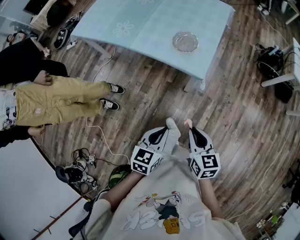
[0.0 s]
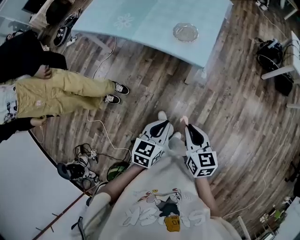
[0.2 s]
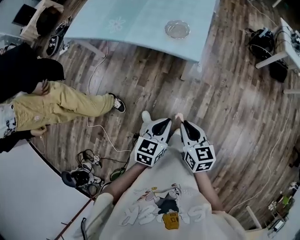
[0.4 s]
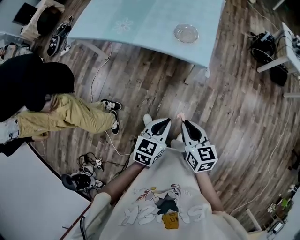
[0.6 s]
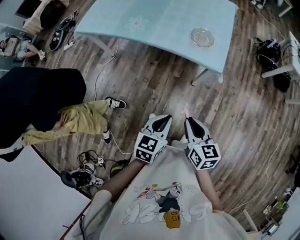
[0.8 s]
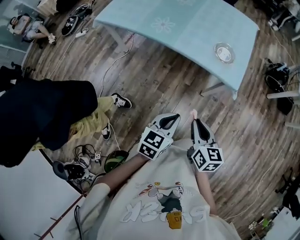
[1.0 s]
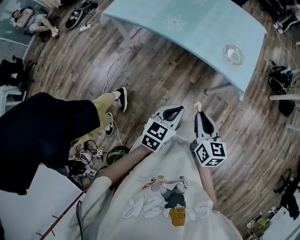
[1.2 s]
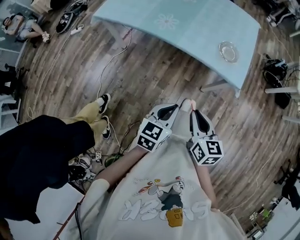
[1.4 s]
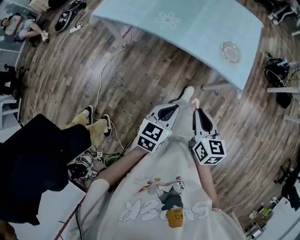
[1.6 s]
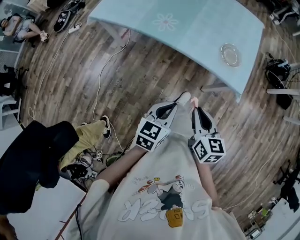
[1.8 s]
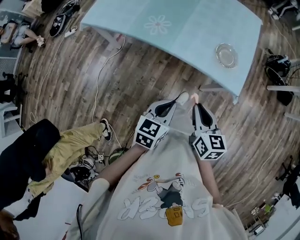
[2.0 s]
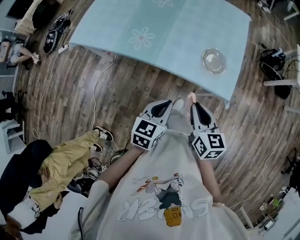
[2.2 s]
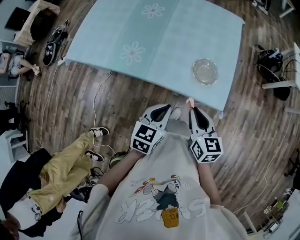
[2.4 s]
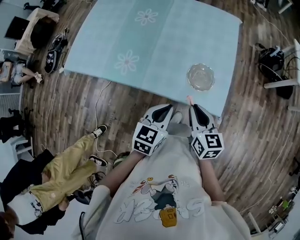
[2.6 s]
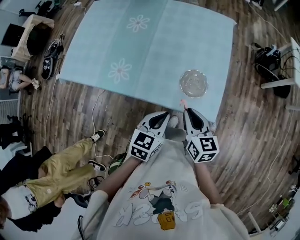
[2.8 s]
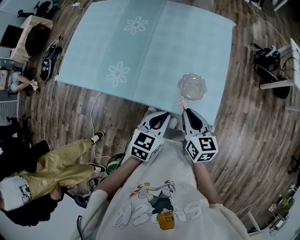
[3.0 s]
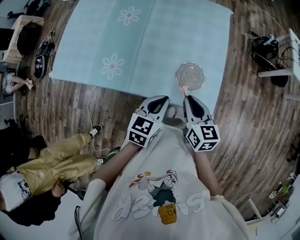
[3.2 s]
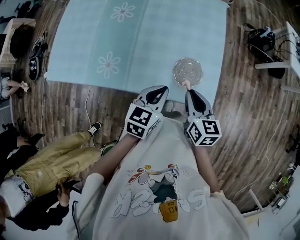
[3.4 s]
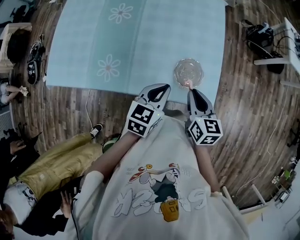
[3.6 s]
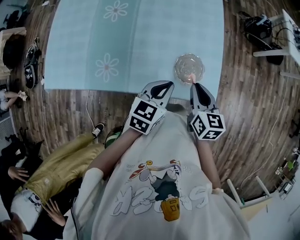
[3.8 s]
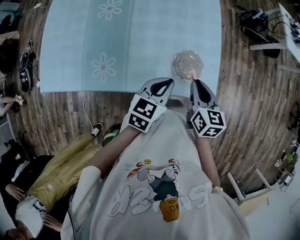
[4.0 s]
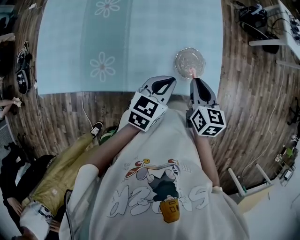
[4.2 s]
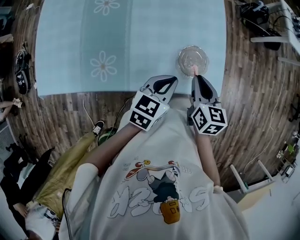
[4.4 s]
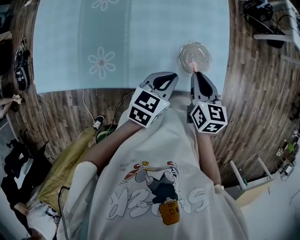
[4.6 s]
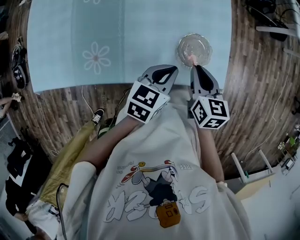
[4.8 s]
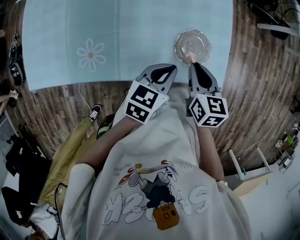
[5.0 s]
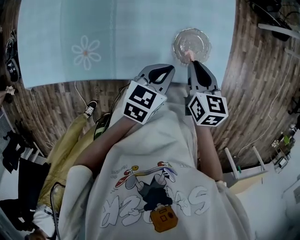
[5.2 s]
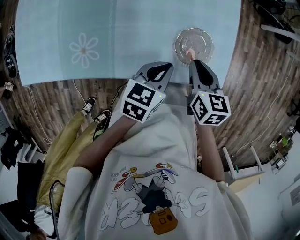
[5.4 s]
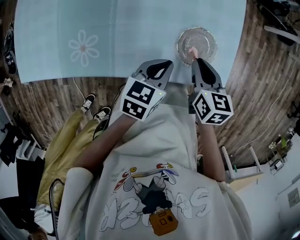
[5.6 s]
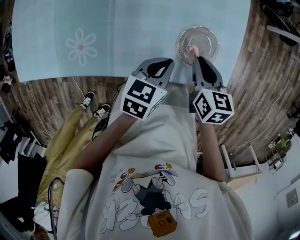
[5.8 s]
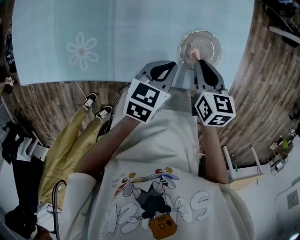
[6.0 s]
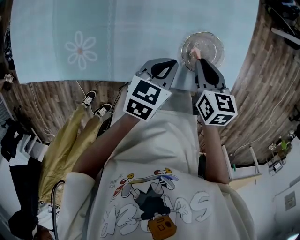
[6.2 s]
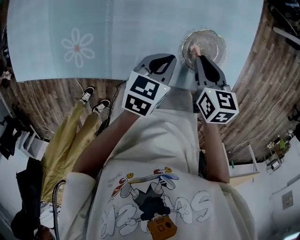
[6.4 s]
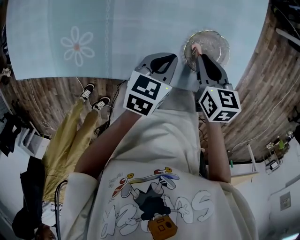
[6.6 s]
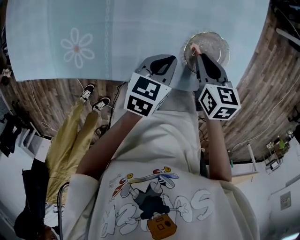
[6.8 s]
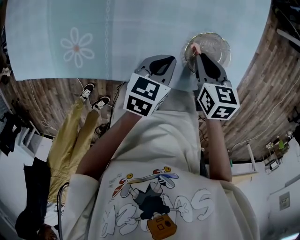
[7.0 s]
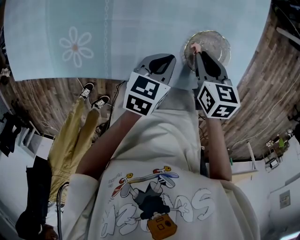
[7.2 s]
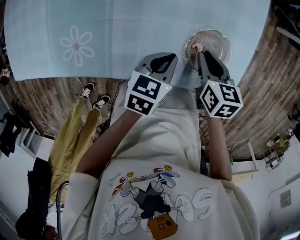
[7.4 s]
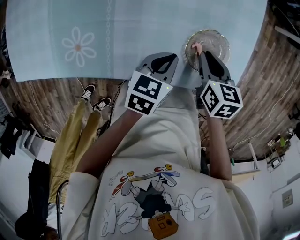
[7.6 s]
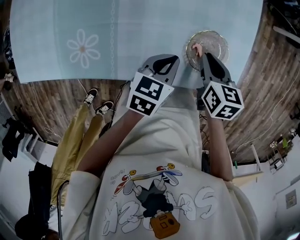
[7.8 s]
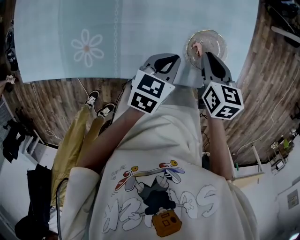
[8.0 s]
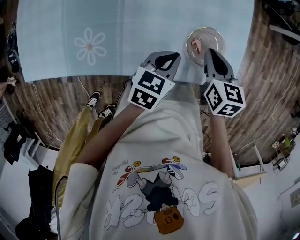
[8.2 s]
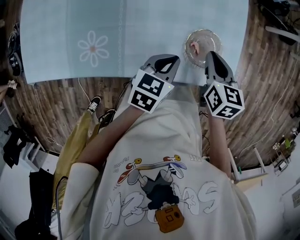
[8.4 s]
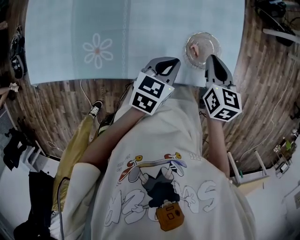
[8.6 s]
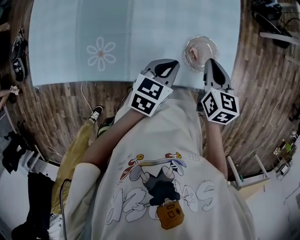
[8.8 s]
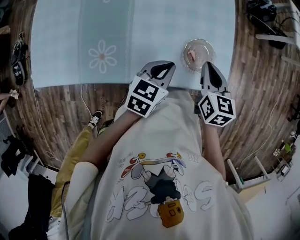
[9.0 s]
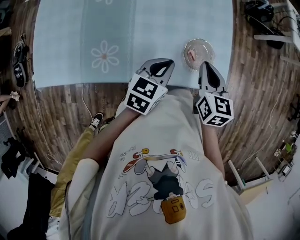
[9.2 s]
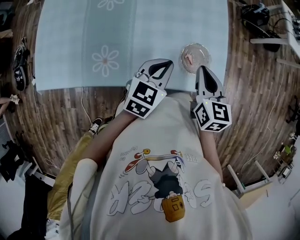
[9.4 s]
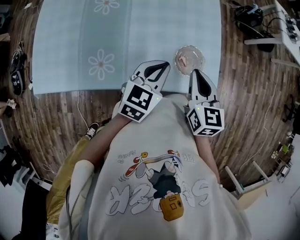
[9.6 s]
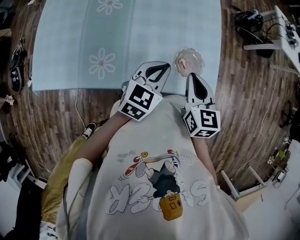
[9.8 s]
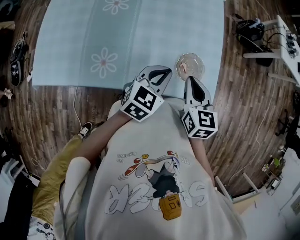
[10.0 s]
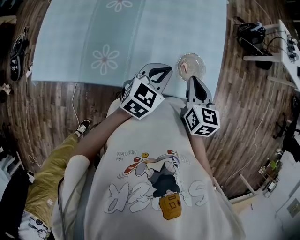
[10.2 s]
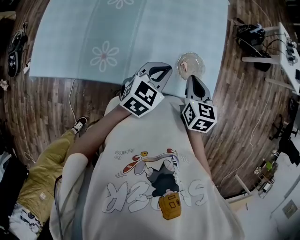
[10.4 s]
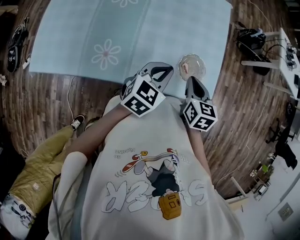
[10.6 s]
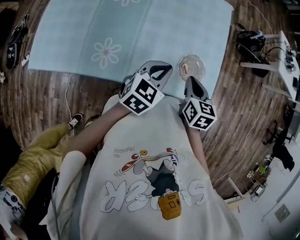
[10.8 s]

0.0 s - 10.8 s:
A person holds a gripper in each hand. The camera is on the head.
0.0 s - 1.6 s: Both grippers travel together to the left, roughly 35 cm.
1.6 s - 3.0 s: The two grippers go about 35 cm forward and to the right.
3.0 s - 4.6 s: Both grippers move forward, some 10 cm. The right gripper changes its angle by about 20 degrees; the left gripper rotates some 20 degrees.
4.6 s - 6.2 s: Both grippers travel together downward, roughly 15 cm.
6.2 s - 7.8 s: There are only small adjustments of the grippers.
7.8 s - 9.2 s: The grippers both shift upward by some 15 cm. The right gripper swivels approximately 20 degrees.

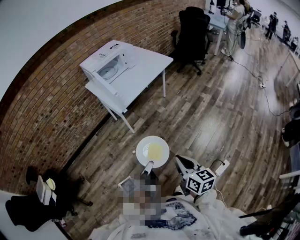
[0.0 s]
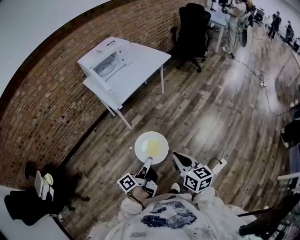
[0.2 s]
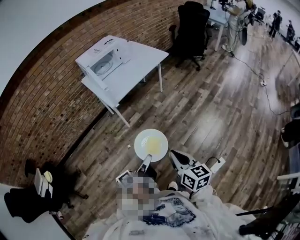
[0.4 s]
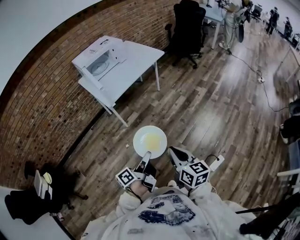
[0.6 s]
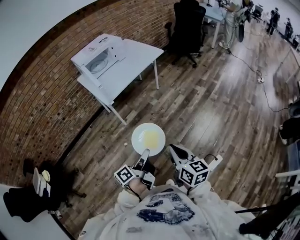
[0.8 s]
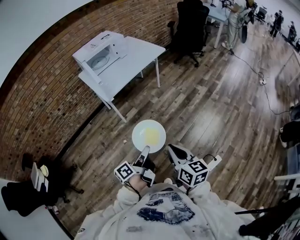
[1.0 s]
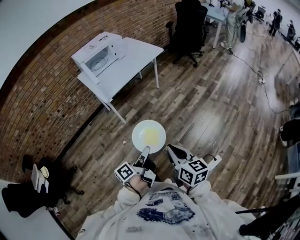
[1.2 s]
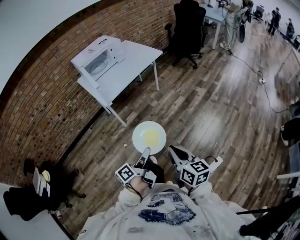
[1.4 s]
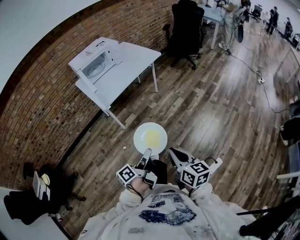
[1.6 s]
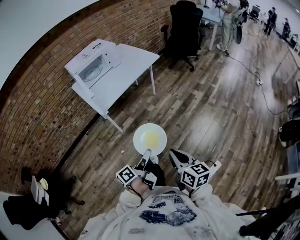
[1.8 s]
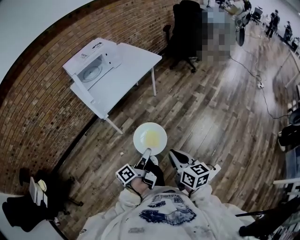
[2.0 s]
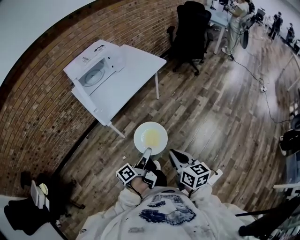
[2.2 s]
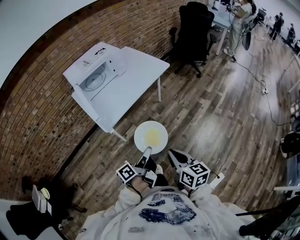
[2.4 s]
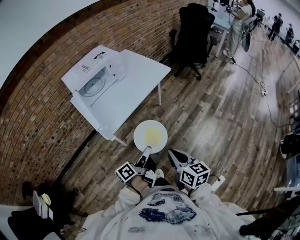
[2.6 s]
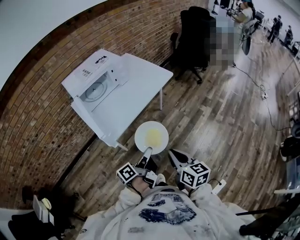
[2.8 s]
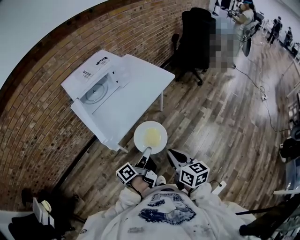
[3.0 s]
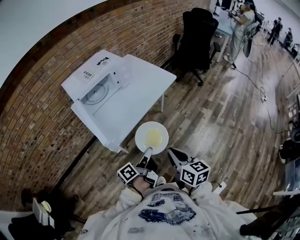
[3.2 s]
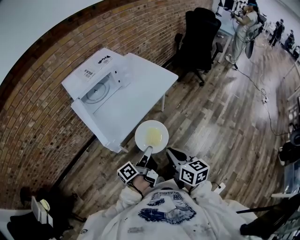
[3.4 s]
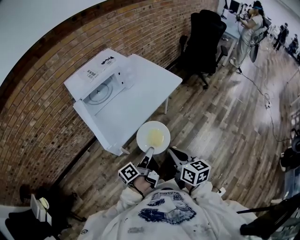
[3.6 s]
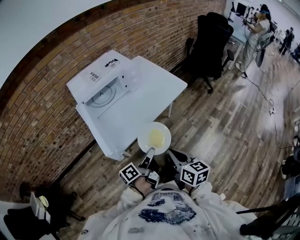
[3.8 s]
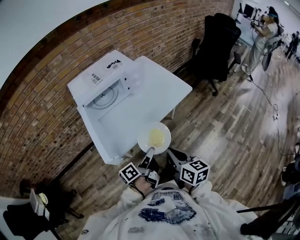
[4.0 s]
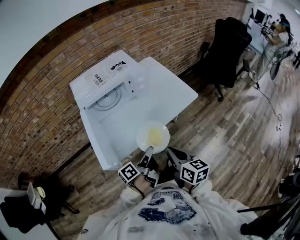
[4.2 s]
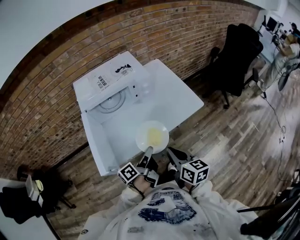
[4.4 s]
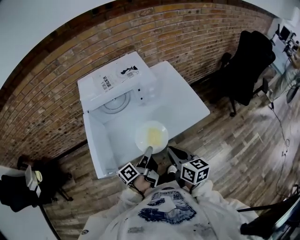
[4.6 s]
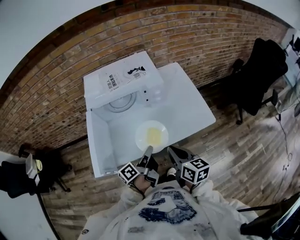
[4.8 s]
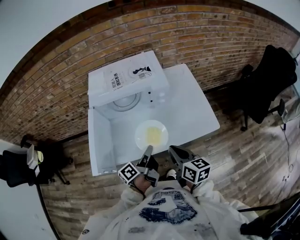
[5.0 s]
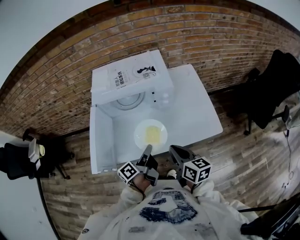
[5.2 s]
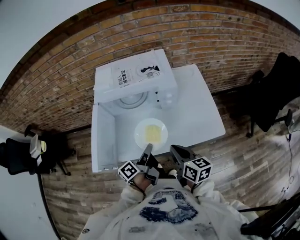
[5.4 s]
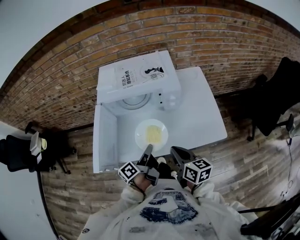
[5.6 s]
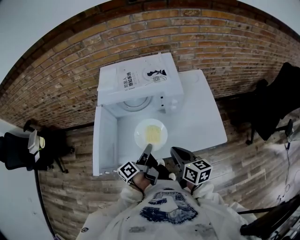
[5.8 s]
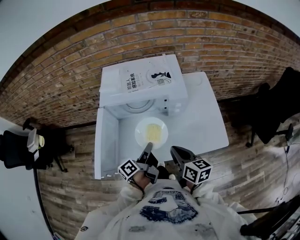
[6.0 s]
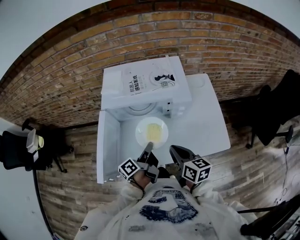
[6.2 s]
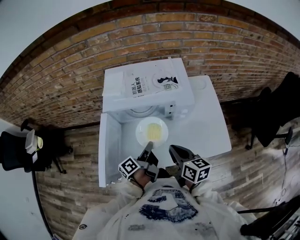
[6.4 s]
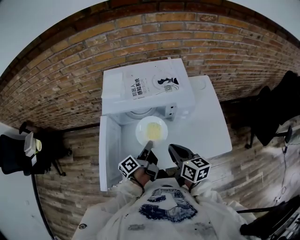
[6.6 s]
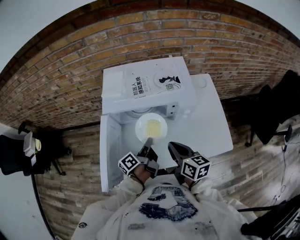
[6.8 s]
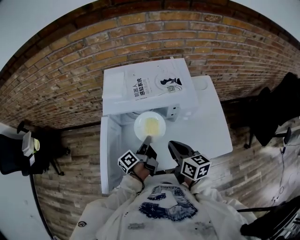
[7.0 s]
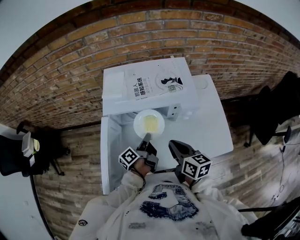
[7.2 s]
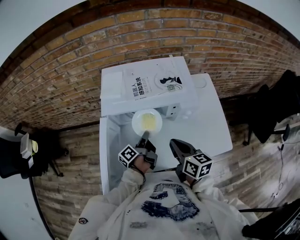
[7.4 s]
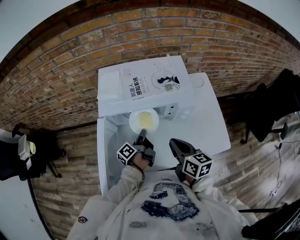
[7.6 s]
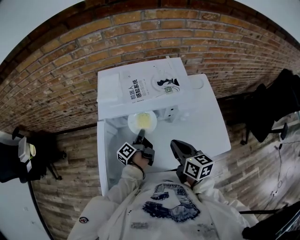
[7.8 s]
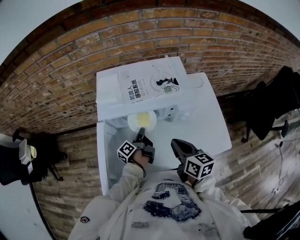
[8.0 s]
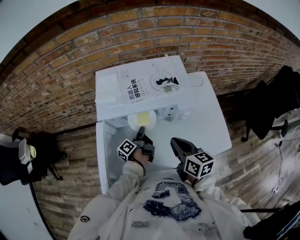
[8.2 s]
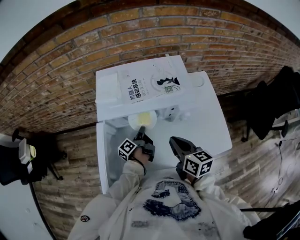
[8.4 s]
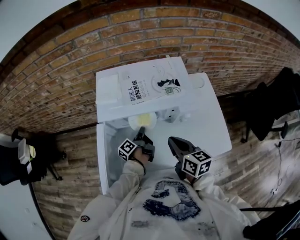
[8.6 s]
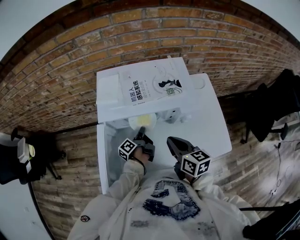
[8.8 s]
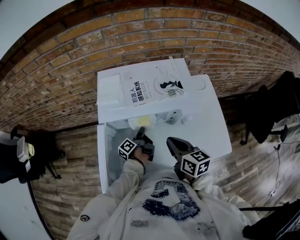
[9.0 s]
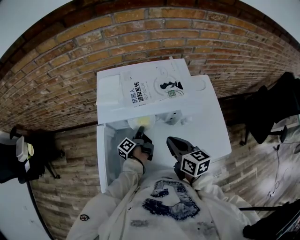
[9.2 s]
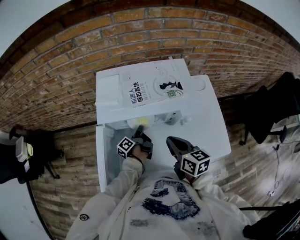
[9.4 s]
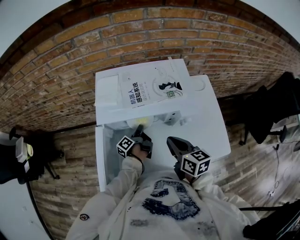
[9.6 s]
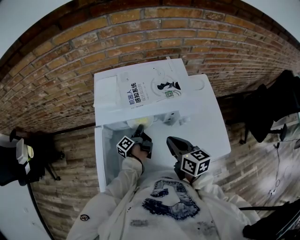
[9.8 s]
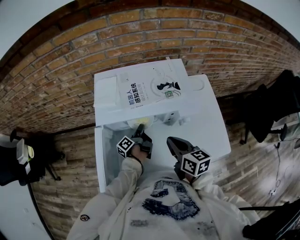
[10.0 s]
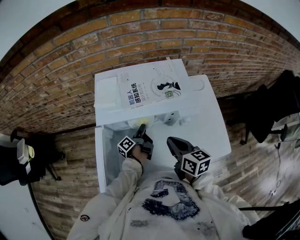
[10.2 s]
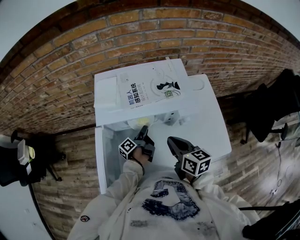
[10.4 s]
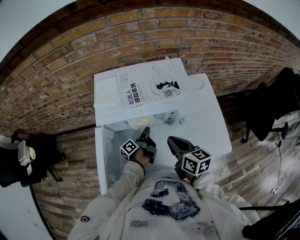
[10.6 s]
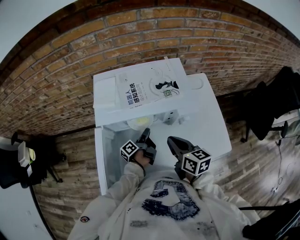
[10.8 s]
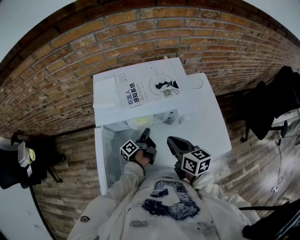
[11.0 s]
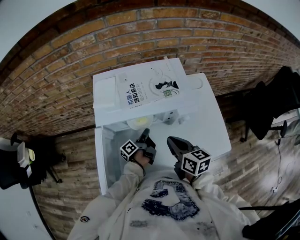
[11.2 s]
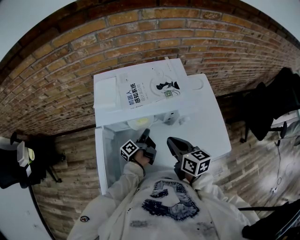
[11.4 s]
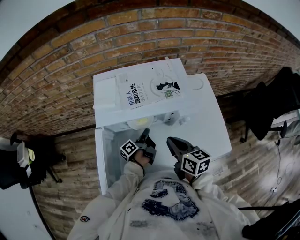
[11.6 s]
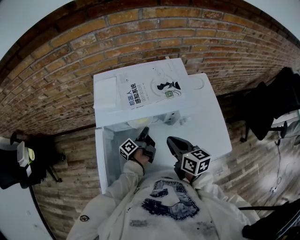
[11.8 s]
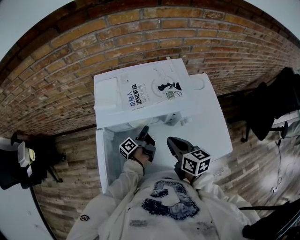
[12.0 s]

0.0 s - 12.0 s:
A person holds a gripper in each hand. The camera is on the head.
0.0 s - 1.6 s: The right gripper ends up about 10 cm from where it was.
1.6 s - 3.0 s: The right gripper changes place by approximately 35 cm.
3.0 s - 4.4 s: The right gripper moves approximately 25 cm.
4.4 s - 6.0 s: The right gripper changes place by roughly 20 cm, and changes its angle by about 20 degrees.
6.0 s - 7.6 s: The right gripper changes place by roughly 10 cm.

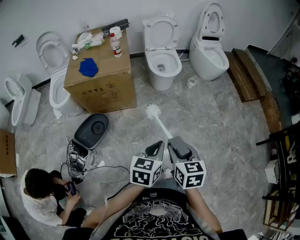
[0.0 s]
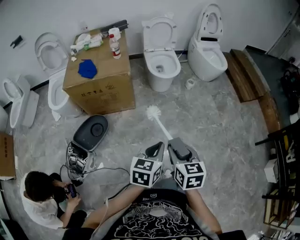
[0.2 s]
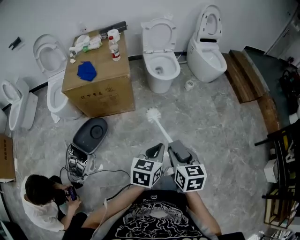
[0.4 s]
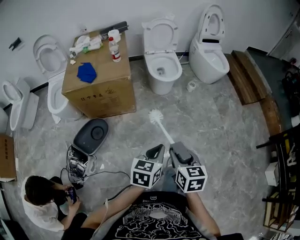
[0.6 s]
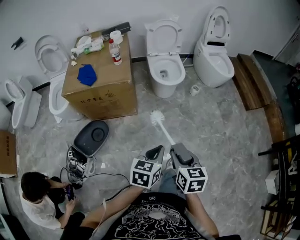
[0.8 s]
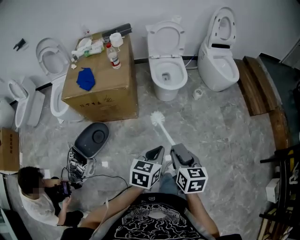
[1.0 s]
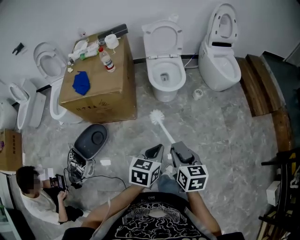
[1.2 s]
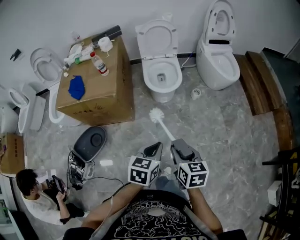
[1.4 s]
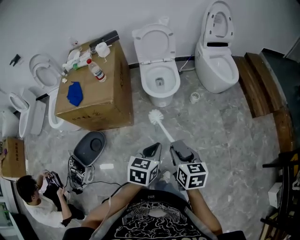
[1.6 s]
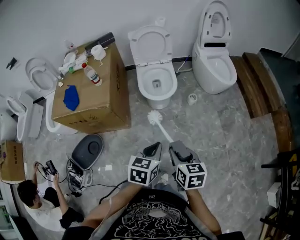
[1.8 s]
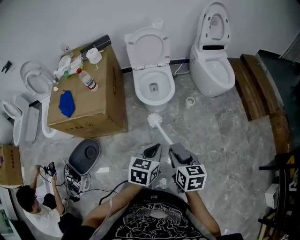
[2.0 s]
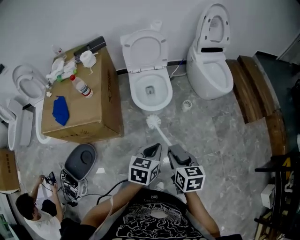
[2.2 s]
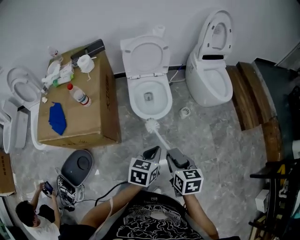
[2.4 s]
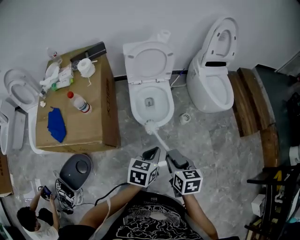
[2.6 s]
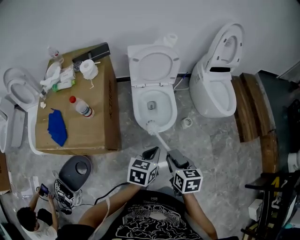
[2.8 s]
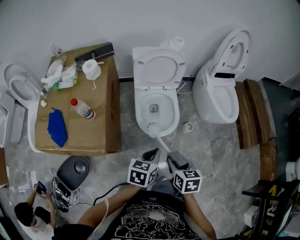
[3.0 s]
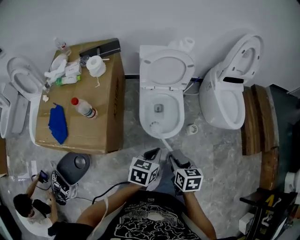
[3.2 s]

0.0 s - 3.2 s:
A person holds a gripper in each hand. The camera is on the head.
0.0 s - 1.6 s: The right gripper heads forward and to the right, covering some 30 cm; the left gripper moves forward, about 25 cm.
1.6 s - 3.2 s: The two grippers go about 35 cm forward.
